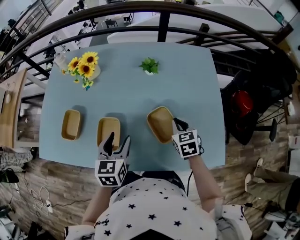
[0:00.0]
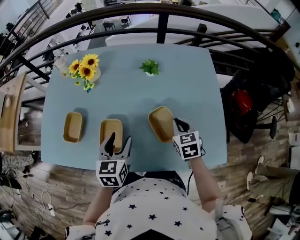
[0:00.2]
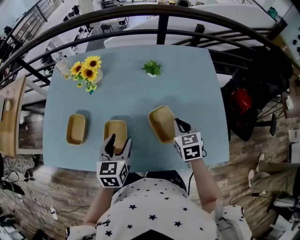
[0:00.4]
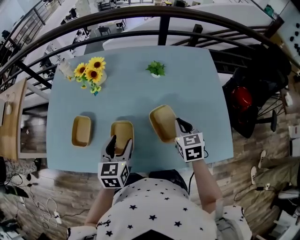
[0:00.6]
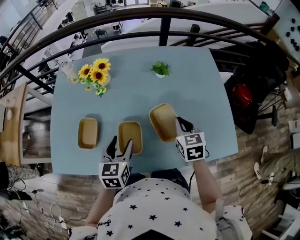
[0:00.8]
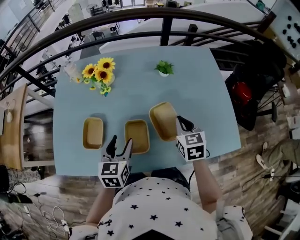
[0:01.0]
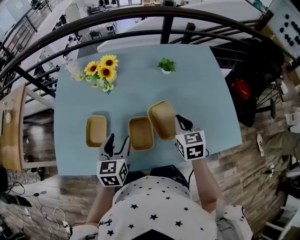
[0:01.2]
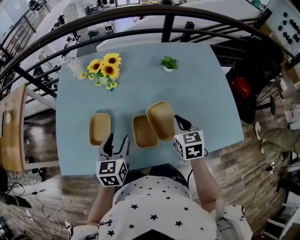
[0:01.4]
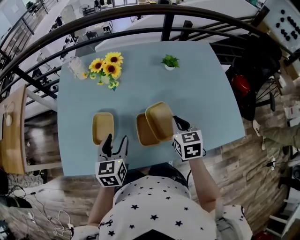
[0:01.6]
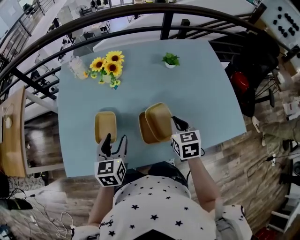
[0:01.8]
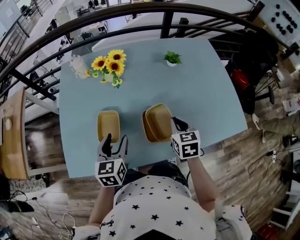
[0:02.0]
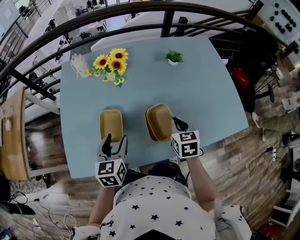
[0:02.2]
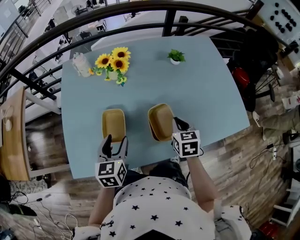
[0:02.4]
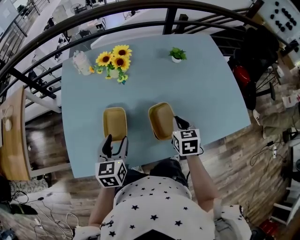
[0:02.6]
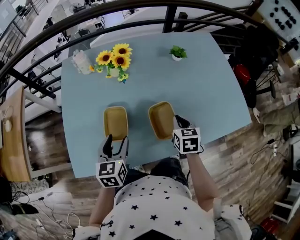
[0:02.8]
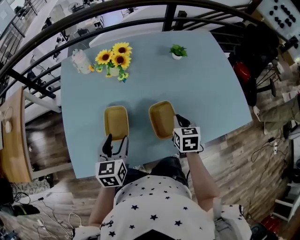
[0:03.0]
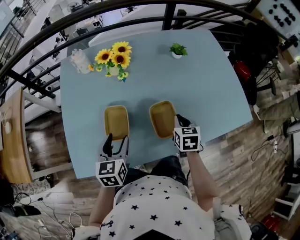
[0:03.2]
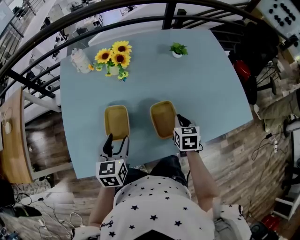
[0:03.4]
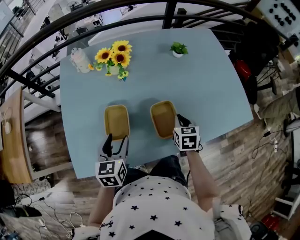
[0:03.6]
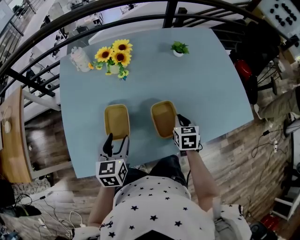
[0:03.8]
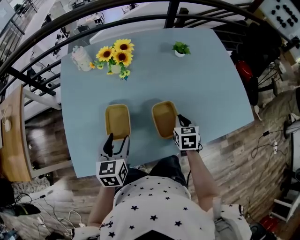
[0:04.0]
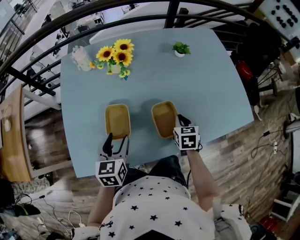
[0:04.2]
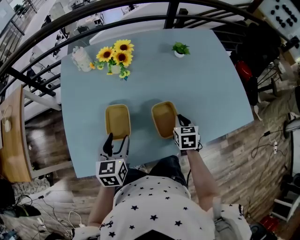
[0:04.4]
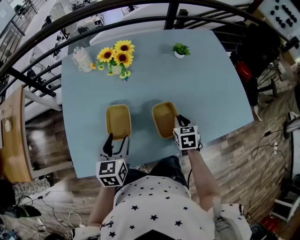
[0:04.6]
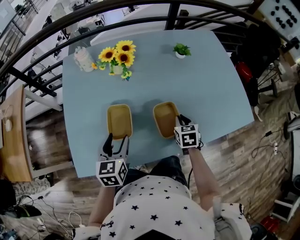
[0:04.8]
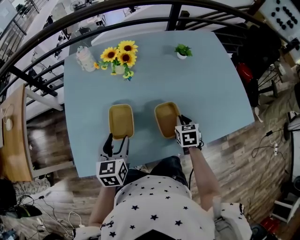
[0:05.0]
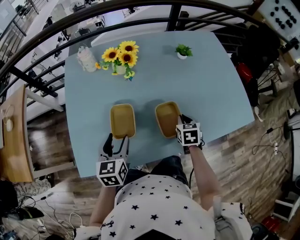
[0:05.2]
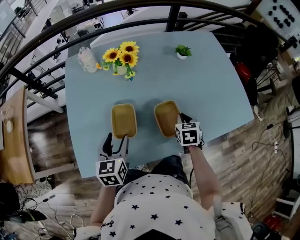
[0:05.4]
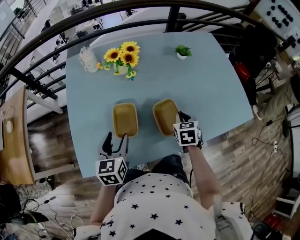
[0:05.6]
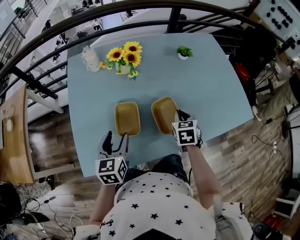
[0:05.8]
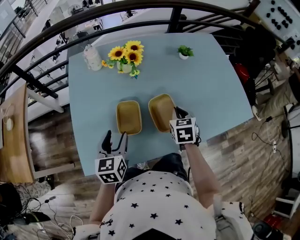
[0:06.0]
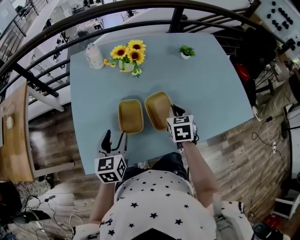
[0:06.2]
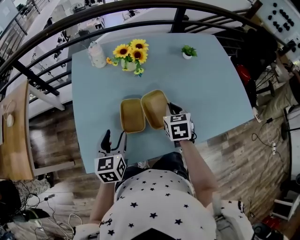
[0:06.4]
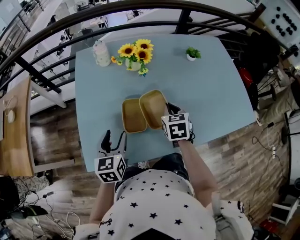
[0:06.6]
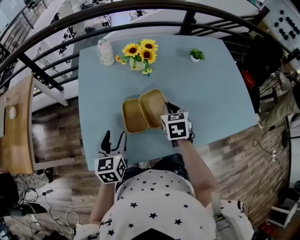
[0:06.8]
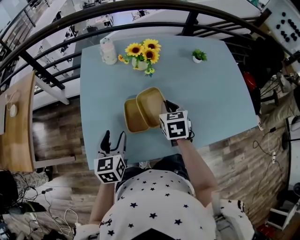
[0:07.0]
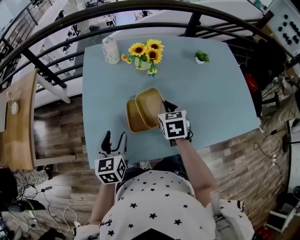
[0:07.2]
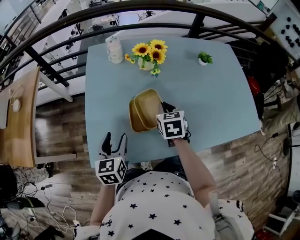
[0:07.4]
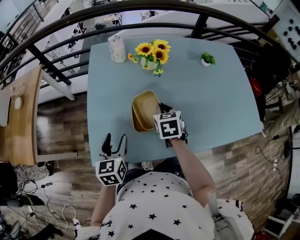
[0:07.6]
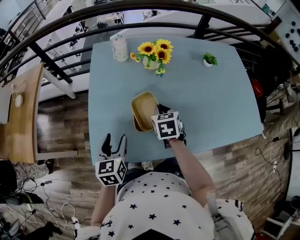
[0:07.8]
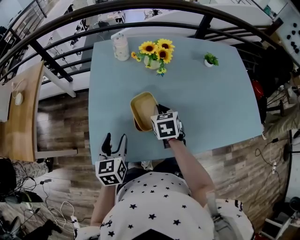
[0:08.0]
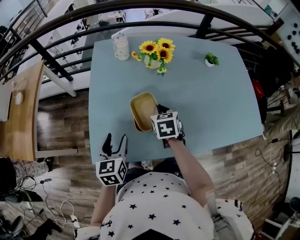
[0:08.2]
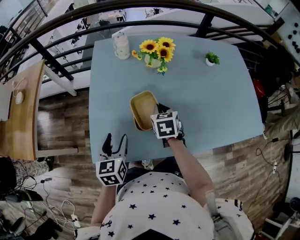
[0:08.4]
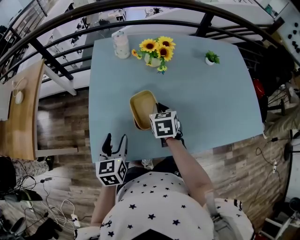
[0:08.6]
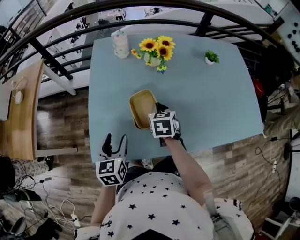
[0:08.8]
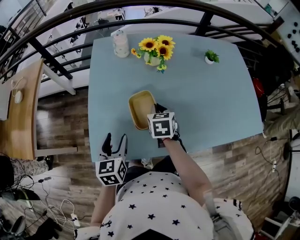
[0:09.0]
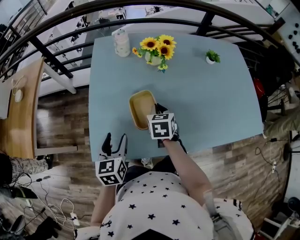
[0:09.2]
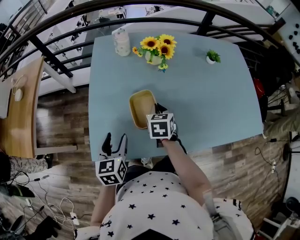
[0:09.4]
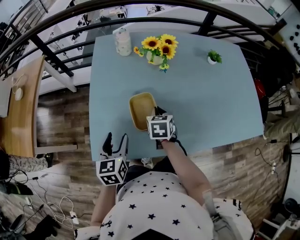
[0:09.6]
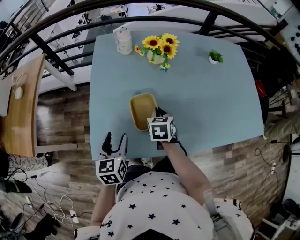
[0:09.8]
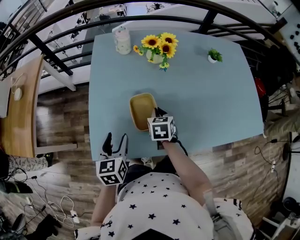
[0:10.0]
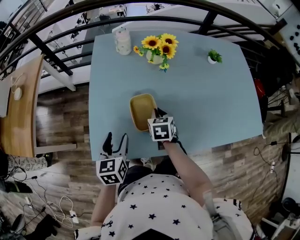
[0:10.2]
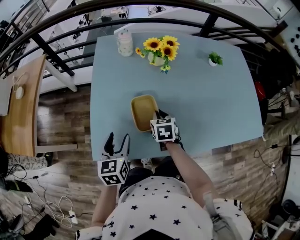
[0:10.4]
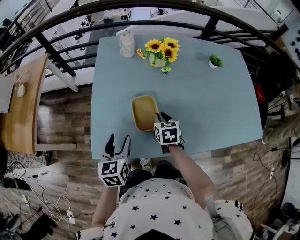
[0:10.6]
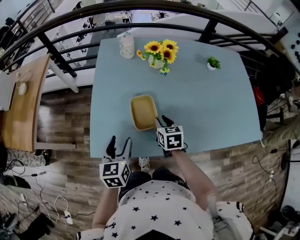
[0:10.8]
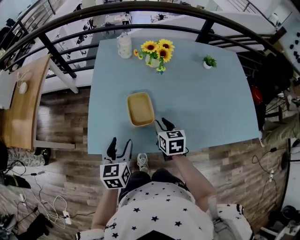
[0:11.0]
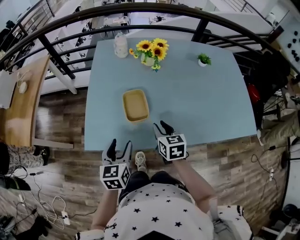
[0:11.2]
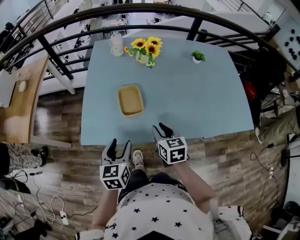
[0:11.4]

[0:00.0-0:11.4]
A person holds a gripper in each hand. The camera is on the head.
0:00.0 to 0:01.4: The right gripper heads to the left and upward, covering approximately 20 cm, while the left gripper travels to the left by roughly 20 cm.
0:01.4 to 0:02.8: The left gripper shifts some 10 cm to the left. Meanwhile the right gripper is displaced to the left and downward by about 10 cm.
0:02.8 to 0:05.6: The grippers move only a little.
0:05.6 to 0:07.2: The left gripper is displaced to the left by approximately 10 cm, while the right gripper is displaced to the left by about 15 cm.
0:07.2 to 0:08.6: The right gripper moves to the left, about 5 cm.
0:08.6 to 0:10.0: The right gripper shifts by roughly 5 cm.
0:10.0 to 0:11.4: The left gripper goes about 15 cm backward and to the right; the right gripper shifts about 20 cm backward.

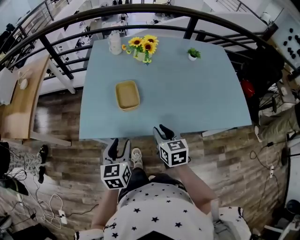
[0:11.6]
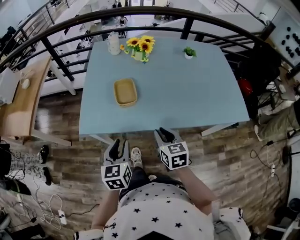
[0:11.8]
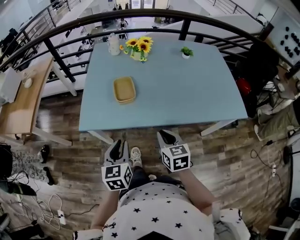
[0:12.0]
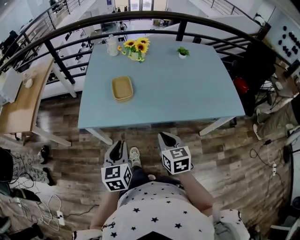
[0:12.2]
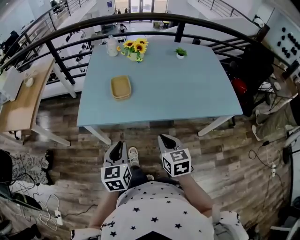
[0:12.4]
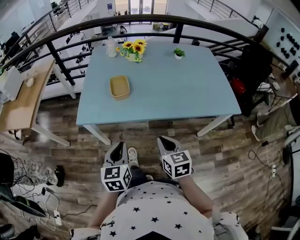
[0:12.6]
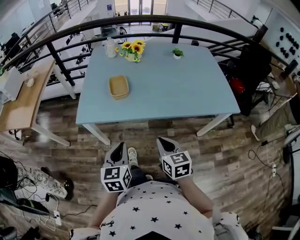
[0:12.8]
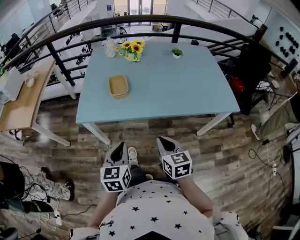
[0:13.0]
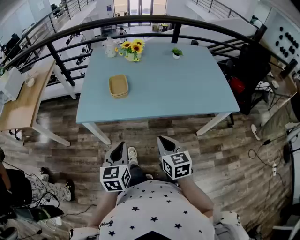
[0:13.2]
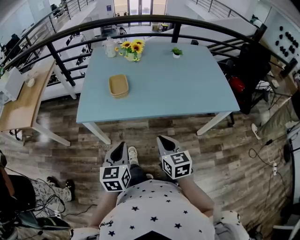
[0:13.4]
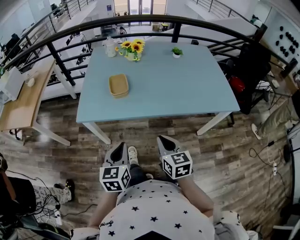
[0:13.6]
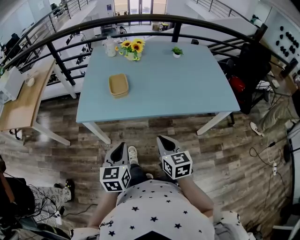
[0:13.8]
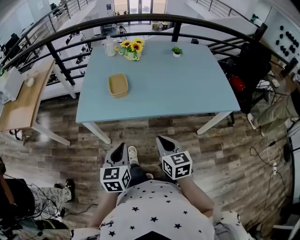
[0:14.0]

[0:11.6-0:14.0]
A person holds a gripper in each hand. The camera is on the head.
0:11.6 to 0:12.8: Both grippers move backward, approximately 20 cm. The left gripper closes its fingers; the right gripper closes up.
0:12.8 to 0:14.0: Both grippers stay put.

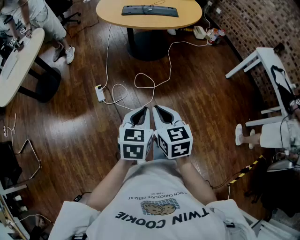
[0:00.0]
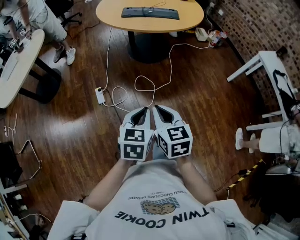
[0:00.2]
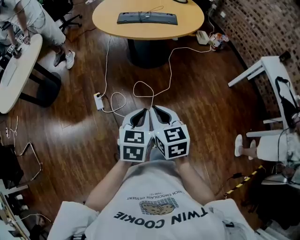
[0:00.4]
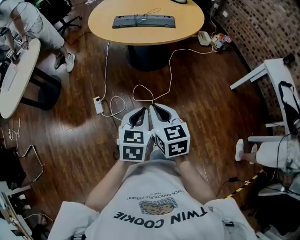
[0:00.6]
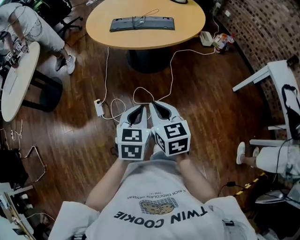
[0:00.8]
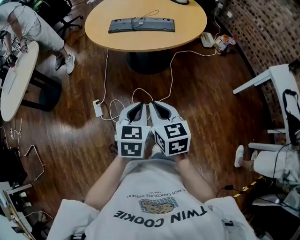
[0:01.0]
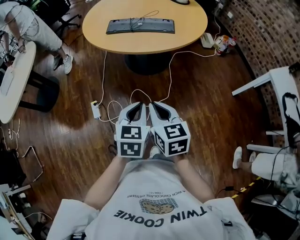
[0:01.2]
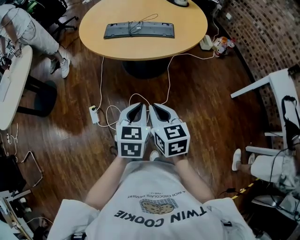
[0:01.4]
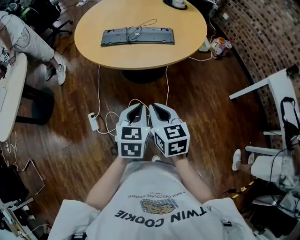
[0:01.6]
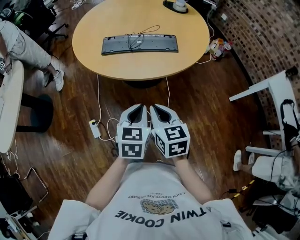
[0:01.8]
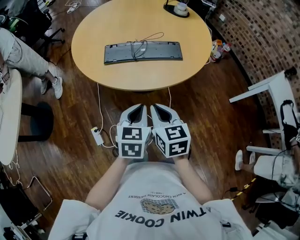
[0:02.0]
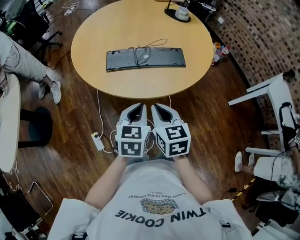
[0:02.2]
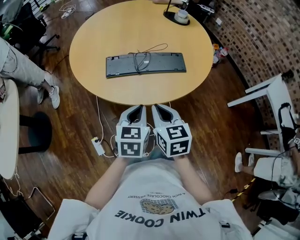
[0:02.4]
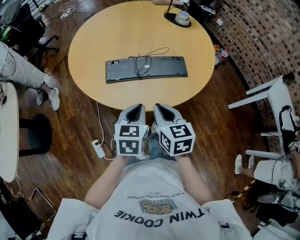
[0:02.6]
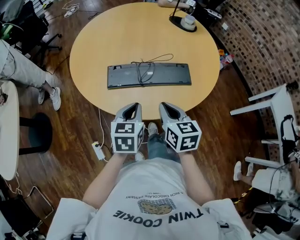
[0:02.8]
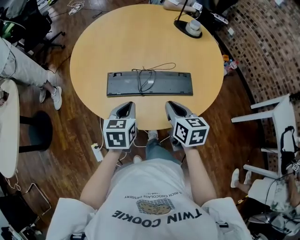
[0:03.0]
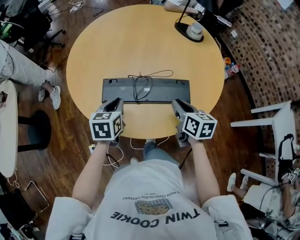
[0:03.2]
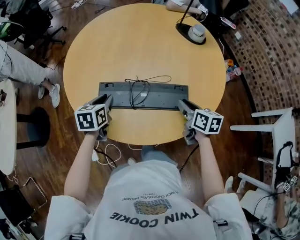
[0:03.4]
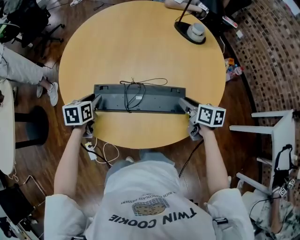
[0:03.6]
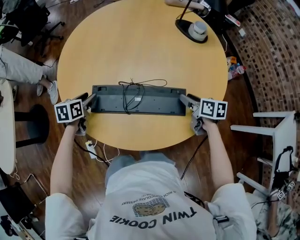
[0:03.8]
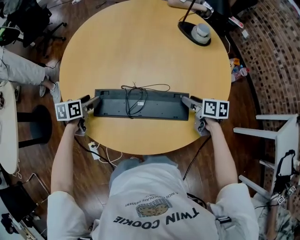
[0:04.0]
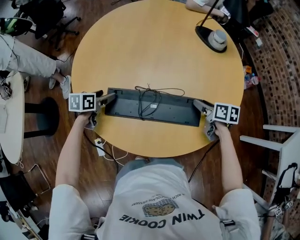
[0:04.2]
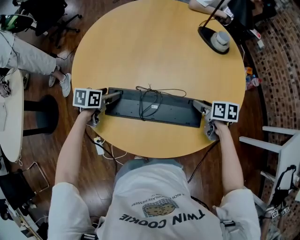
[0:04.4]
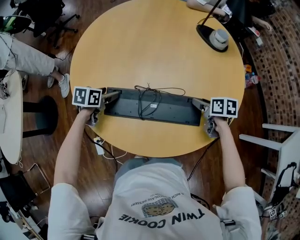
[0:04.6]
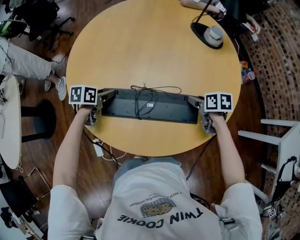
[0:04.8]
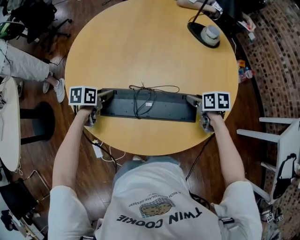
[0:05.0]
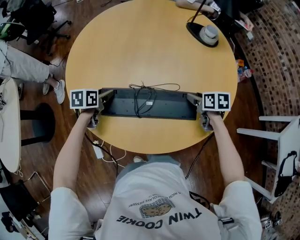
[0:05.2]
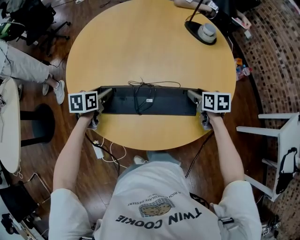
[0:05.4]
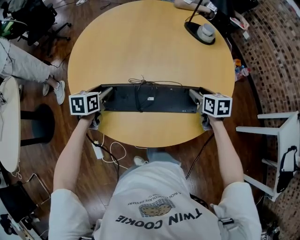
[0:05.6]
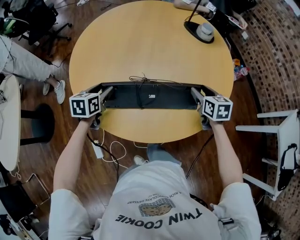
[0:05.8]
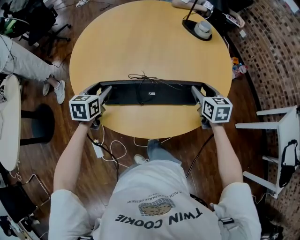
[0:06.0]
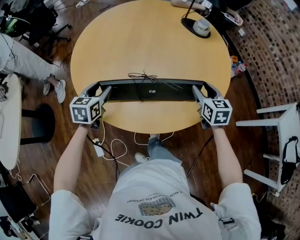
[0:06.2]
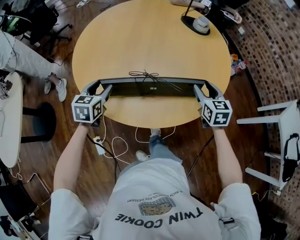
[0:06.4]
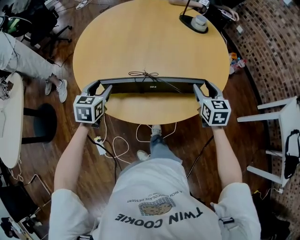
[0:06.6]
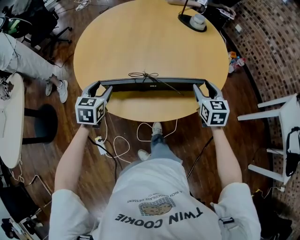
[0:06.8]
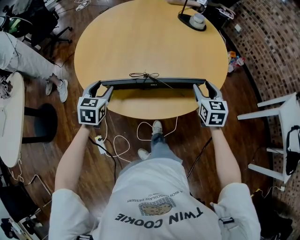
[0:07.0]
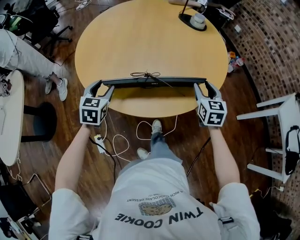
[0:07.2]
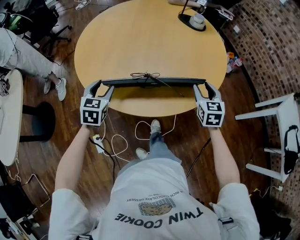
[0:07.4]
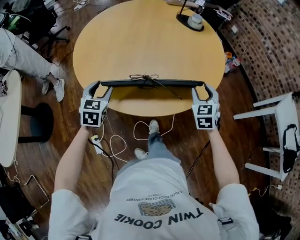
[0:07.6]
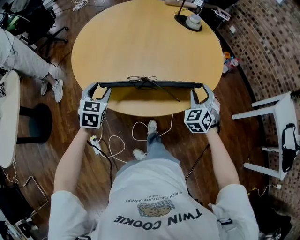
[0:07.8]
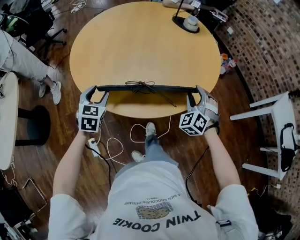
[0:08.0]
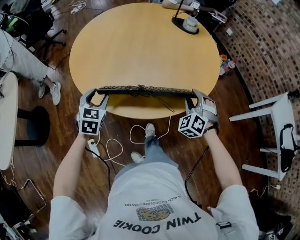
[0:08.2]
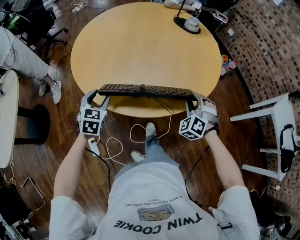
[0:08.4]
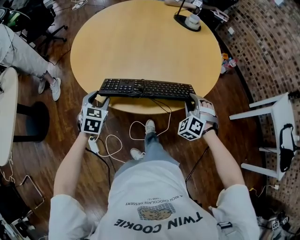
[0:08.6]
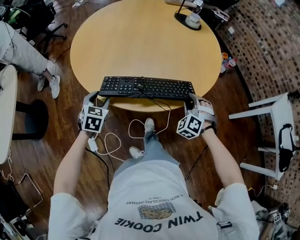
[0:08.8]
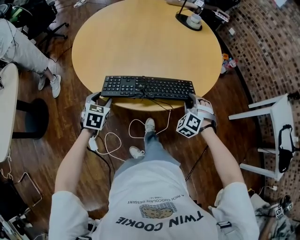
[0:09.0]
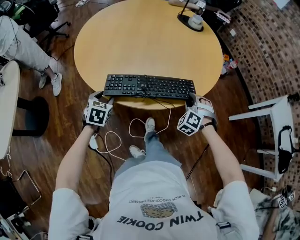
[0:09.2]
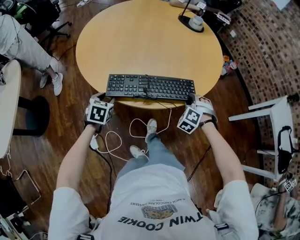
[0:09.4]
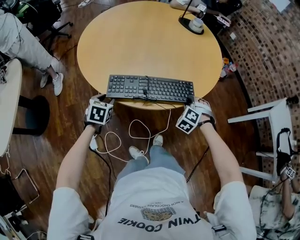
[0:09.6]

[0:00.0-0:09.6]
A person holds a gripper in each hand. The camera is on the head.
0:00.0 to 0:01.6: Both grippers are carried forward, about 40 cm.
0:01.6 to 0:03.2: Both grippers are carried forward, some 40 cm.
0:03.2 to 0:04.8: The left gripper moves forward, downward and to the left, roughly 20 cm, turns by some 30 degrees, and opens. The right gripper is displaced forward, downward and to the right by approximately 20 cm, turns by approximately 30 degrees, and opens its fingers.
0:04.8 to 0:06.4: The left gripper moves backward and upward, roughly 15 cm, and swivels about 40 degrees. Meanwhile the right gripper is displaced upward and backward by roughly 15 cm, and changes its angle by about 40 degrees.
0:06.4 to 0:08.0: The grippers both shift backward by roughly 10 cm. The right gripper rotates around the line of its fingers by roughly 60 degrees, counterclockwise from behind.
0:08.0 to 0:09.6: The grippers both shift downward and backward by approximately 10 cm. The right gripper swivels some 30 degrees.
